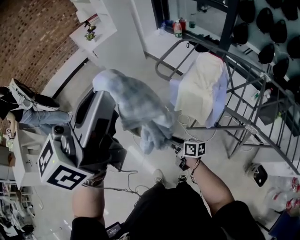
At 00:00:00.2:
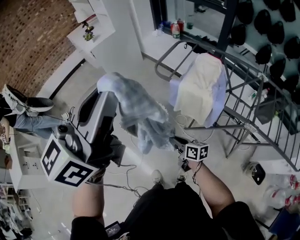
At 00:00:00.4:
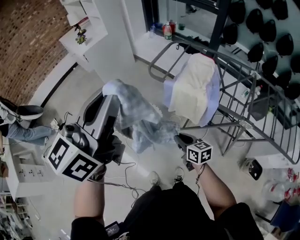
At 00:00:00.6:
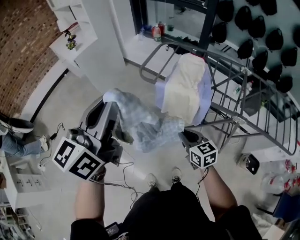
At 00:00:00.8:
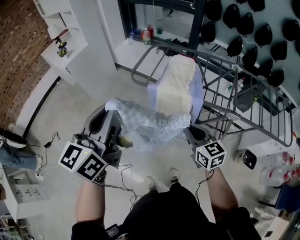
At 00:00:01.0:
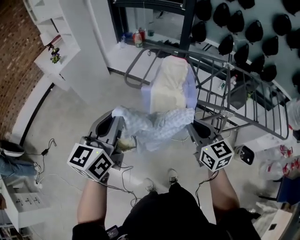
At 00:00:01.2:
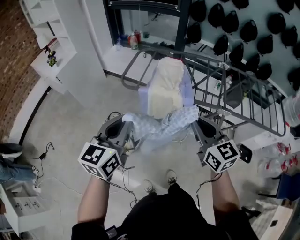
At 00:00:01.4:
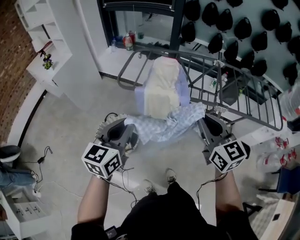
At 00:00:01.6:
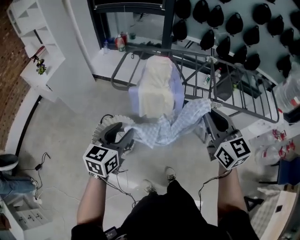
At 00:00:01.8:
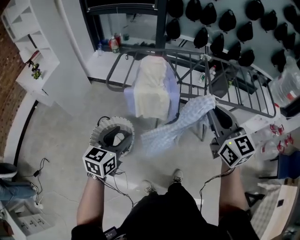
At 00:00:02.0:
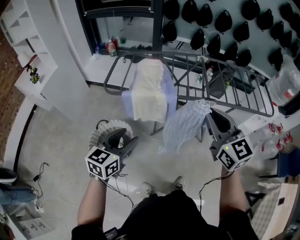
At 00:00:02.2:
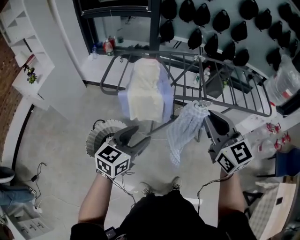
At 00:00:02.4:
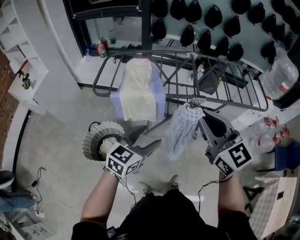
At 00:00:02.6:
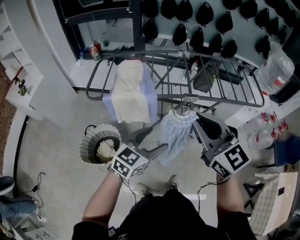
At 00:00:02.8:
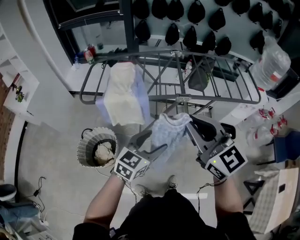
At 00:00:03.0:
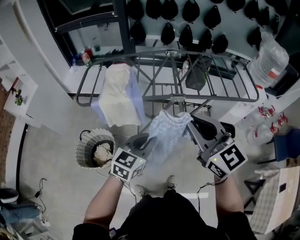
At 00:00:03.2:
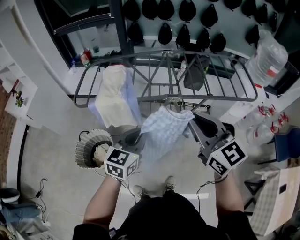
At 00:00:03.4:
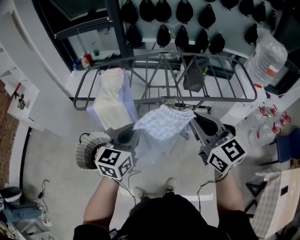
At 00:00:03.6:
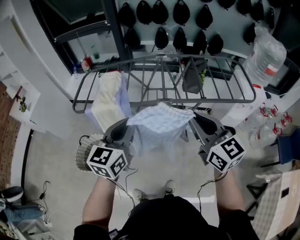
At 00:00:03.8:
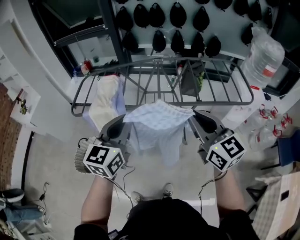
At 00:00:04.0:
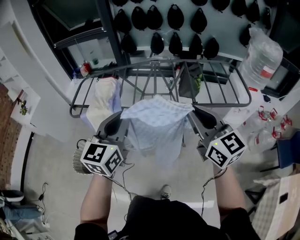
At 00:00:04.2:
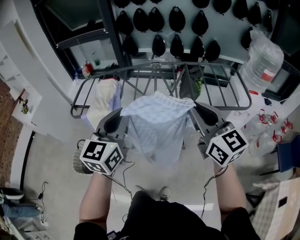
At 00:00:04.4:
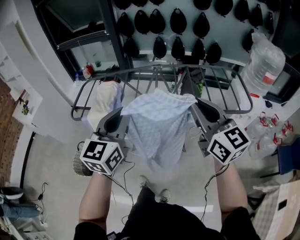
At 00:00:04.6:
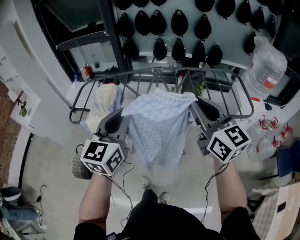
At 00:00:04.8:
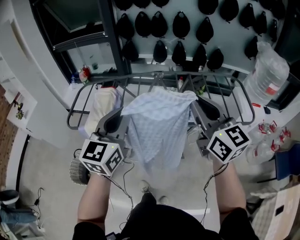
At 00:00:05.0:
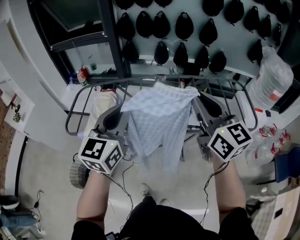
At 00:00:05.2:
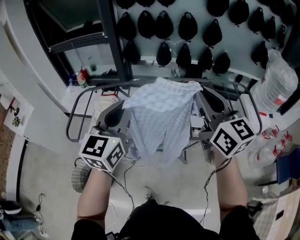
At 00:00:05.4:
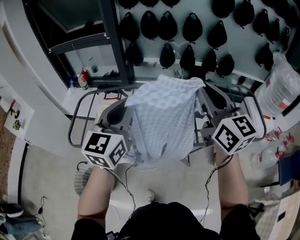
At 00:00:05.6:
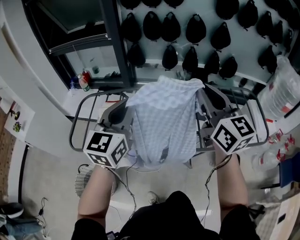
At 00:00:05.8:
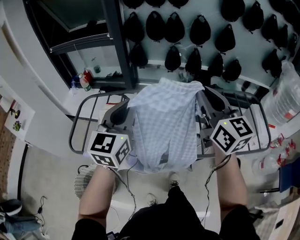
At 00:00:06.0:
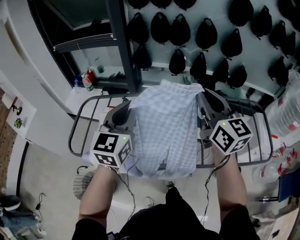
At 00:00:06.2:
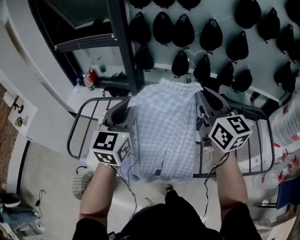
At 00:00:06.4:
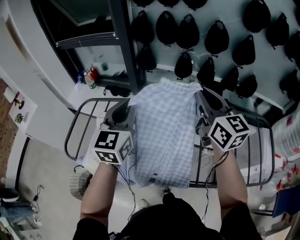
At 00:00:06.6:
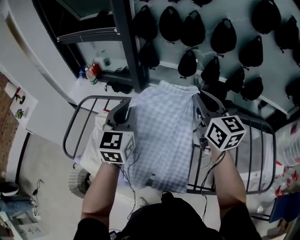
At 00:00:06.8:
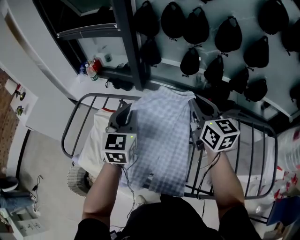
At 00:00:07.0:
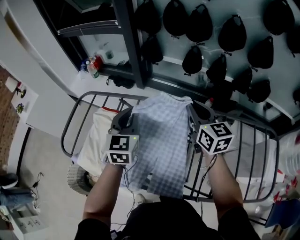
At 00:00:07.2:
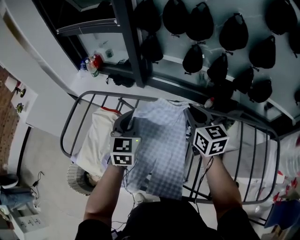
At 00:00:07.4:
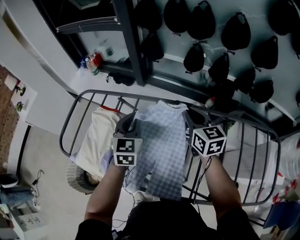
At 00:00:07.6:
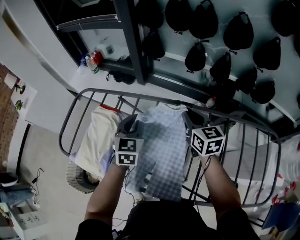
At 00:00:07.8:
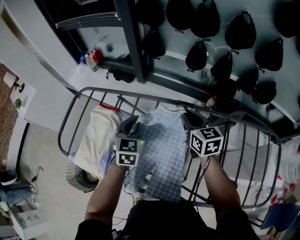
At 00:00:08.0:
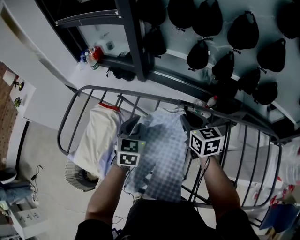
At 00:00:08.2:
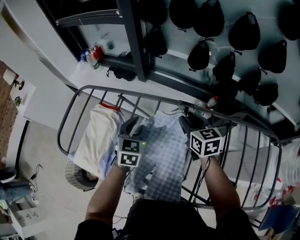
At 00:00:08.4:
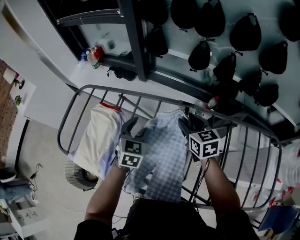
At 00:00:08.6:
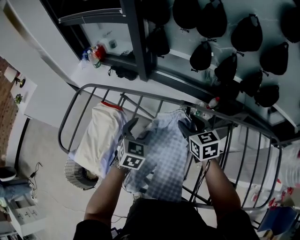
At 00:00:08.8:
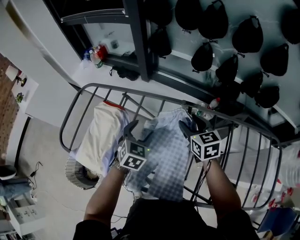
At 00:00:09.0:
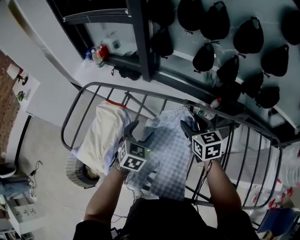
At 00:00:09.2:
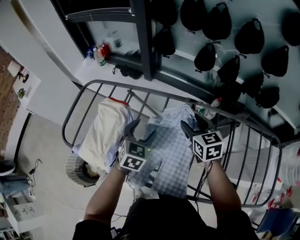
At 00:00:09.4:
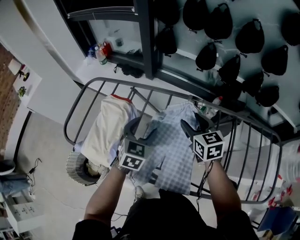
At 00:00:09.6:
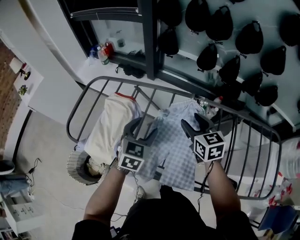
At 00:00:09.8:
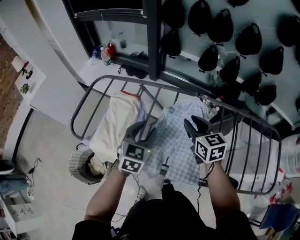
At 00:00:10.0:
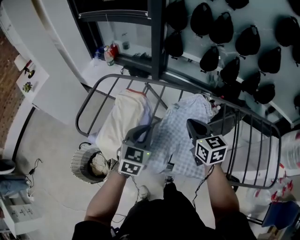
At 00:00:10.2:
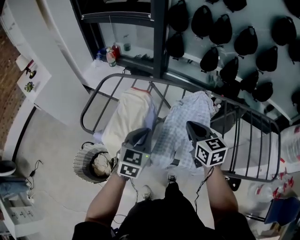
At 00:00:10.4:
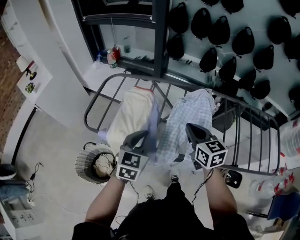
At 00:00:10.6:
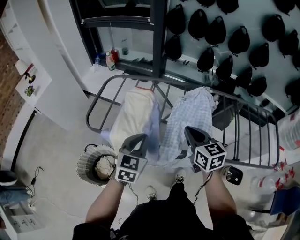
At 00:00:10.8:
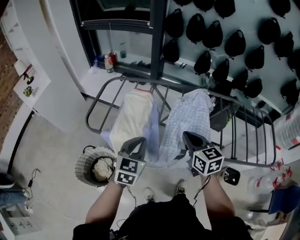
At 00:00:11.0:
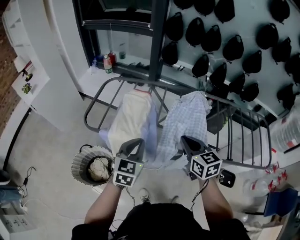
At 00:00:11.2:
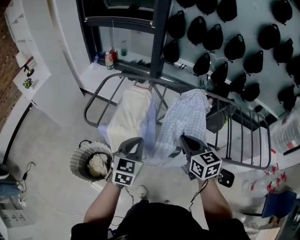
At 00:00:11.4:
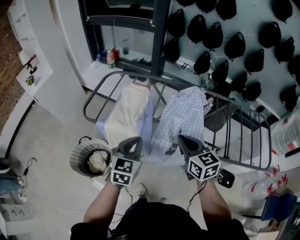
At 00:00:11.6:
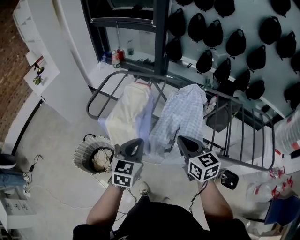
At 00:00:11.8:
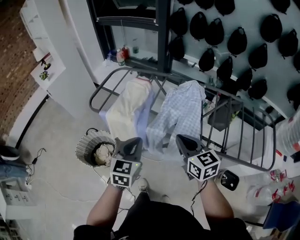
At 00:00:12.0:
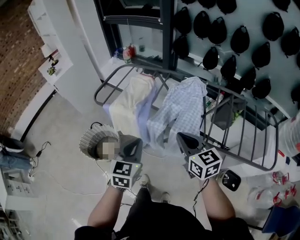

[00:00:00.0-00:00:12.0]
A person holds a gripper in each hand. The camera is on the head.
00:00:00.0 to 00:00:01.6: The left gripper is displaced downward by about 30 cm, points its fingers roughly 30 degrees further downward, and opens up. The right gripper goes roughly 35 cm upward, turns by some 70 degrees, and closes.
00:00:01.6 to 00:00:03.0: The right gripper moves to the right, about 15 cm. The left gripper heads to the right, covering approximately 30 cm, rotates some 30 degrees, and closes its fingers.
00:00:03.0 to 00:00:04.4: The left gripper goes about 20 cm upward and to the right, and changes its angle by roughly 30 degrees; the right gripper shifts some 20 cm to the right.
00:00:04.4 to 00:00:06.0: The two grippers go about 35 cm forward.
00:00:06.0 to 00:00:07.6: Both grippers travel together downward and forward, about 30 cm. The left gripper swivels approximately 30 degrees. The right gripper turns by roughly 30 degrees.
00:00:07.6 to 00:00:09.0: The right gripper moves roughly 5 cm, and opens. The left gripper heads downward, covering some 5 cm, and opens.
00:00:09.0 to 00:00:10.4: The right gripper heads backward and to the left, covering approximately 25 cm, and closes. The left gripper travels backward, to the left and upward by roughly 25 cm, and closes its fingers.
00:00:10.4 to 00:00:12.0: The two grippers go roughly 20 cm backward.

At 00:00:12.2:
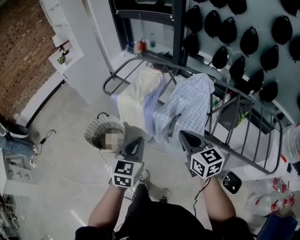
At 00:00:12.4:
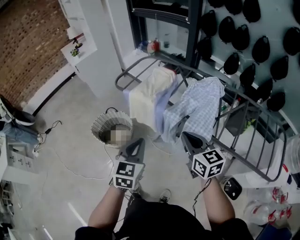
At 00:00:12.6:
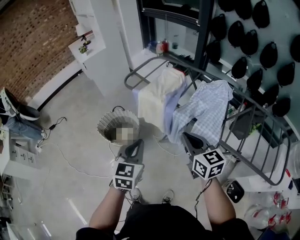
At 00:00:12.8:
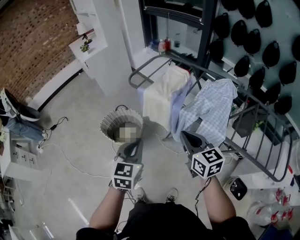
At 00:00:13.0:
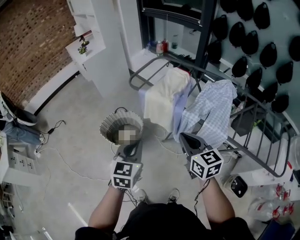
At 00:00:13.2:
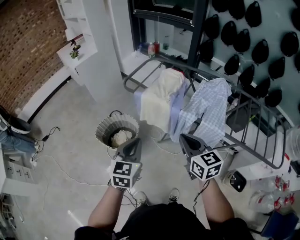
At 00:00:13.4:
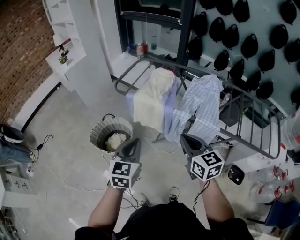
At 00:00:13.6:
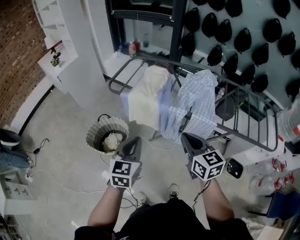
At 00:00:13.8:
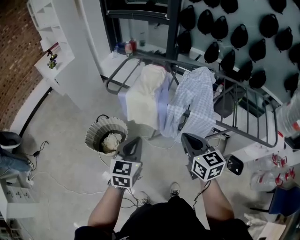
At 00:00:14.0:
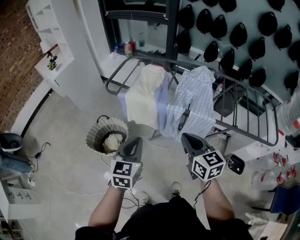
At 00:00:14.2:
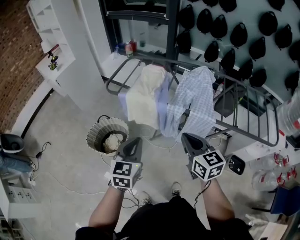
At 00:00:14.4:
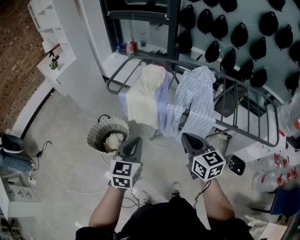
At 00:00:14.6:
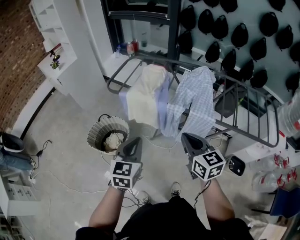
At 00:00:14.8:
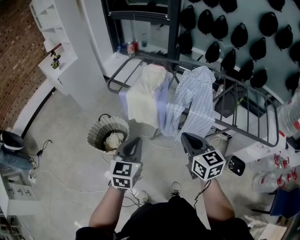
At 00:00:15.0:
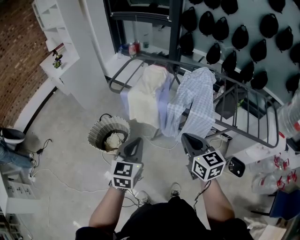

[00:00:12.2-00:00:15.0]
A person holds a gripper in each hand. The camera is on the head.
00:00:12.2 to 00:00:13.6: Both grippers travel together to the left, roughly 15 cm.
00:00:13.6 to 00:00:15.0: The grippers stay close to where they were, moving slightly.

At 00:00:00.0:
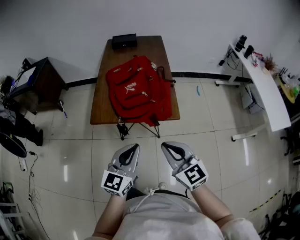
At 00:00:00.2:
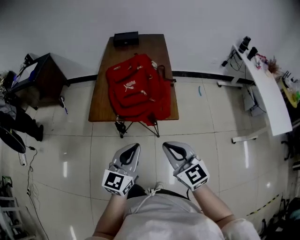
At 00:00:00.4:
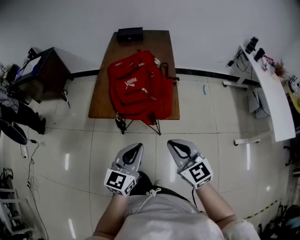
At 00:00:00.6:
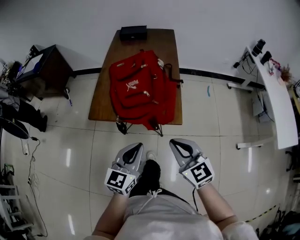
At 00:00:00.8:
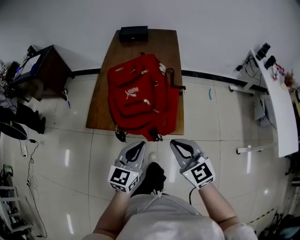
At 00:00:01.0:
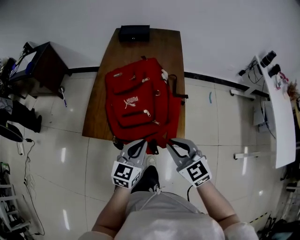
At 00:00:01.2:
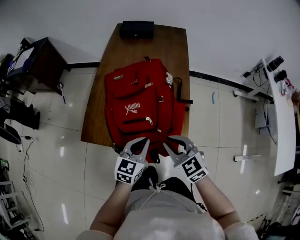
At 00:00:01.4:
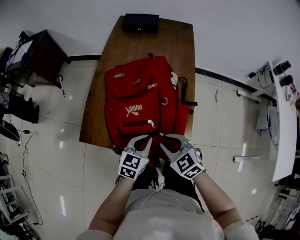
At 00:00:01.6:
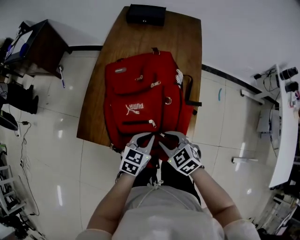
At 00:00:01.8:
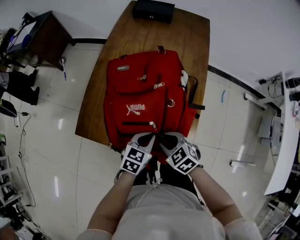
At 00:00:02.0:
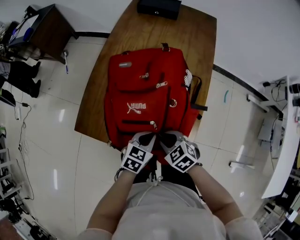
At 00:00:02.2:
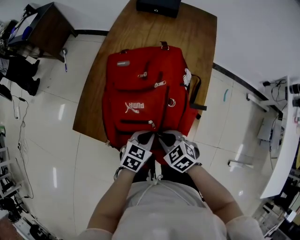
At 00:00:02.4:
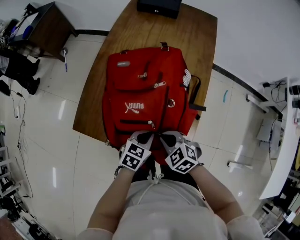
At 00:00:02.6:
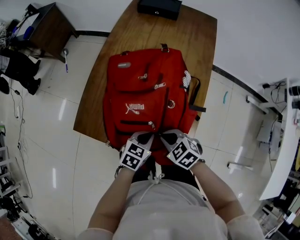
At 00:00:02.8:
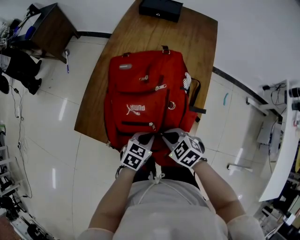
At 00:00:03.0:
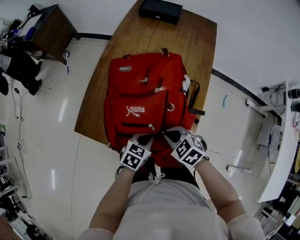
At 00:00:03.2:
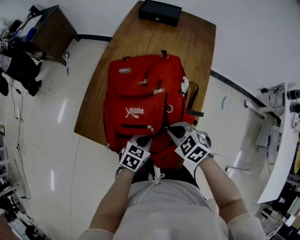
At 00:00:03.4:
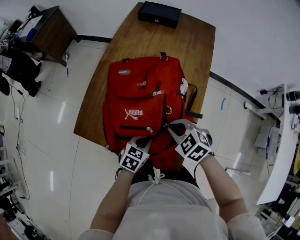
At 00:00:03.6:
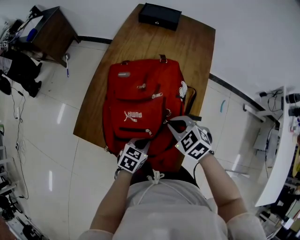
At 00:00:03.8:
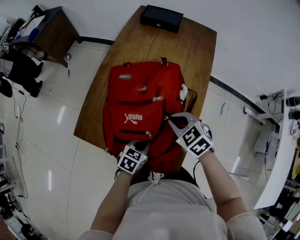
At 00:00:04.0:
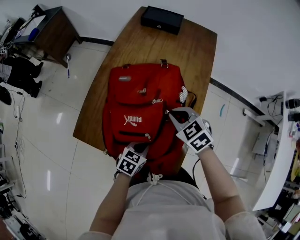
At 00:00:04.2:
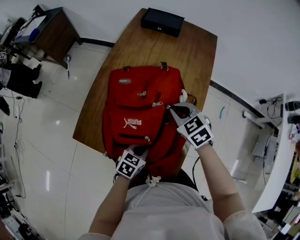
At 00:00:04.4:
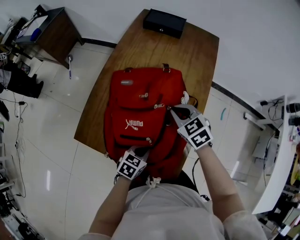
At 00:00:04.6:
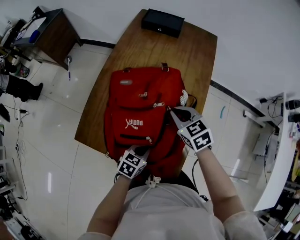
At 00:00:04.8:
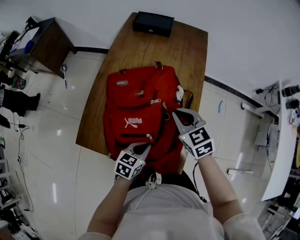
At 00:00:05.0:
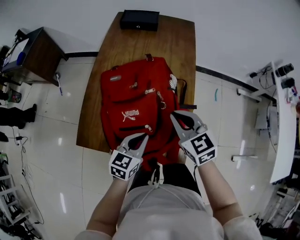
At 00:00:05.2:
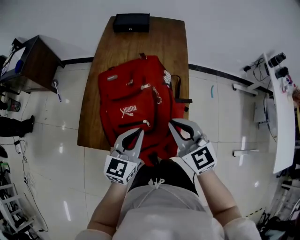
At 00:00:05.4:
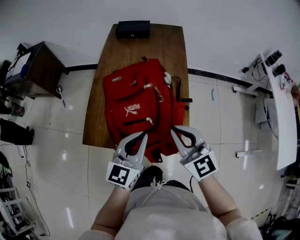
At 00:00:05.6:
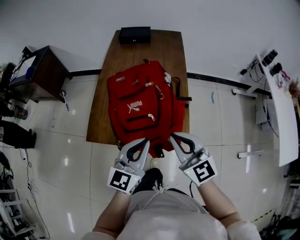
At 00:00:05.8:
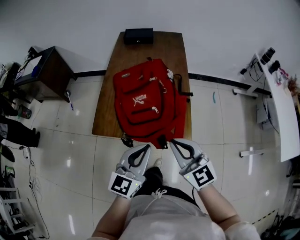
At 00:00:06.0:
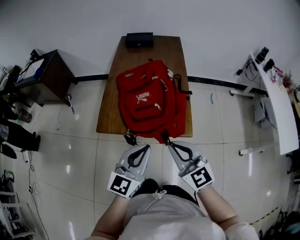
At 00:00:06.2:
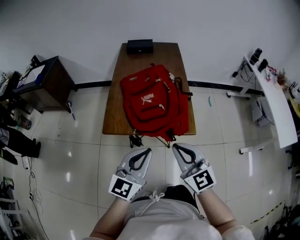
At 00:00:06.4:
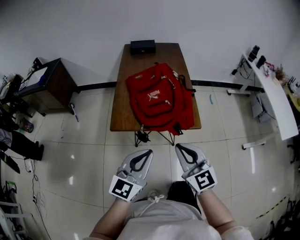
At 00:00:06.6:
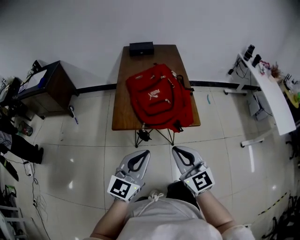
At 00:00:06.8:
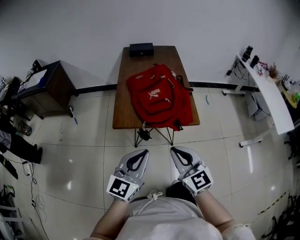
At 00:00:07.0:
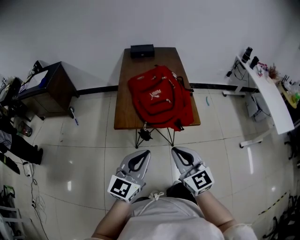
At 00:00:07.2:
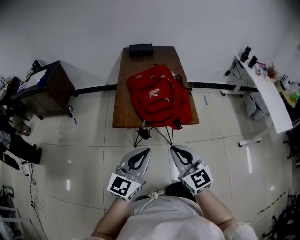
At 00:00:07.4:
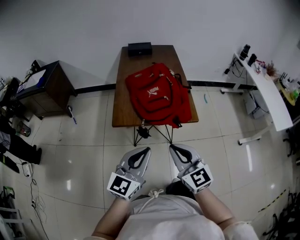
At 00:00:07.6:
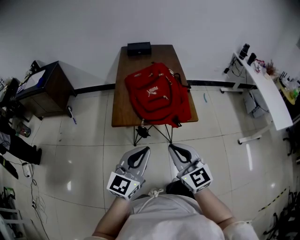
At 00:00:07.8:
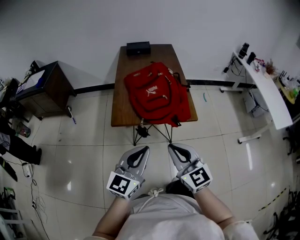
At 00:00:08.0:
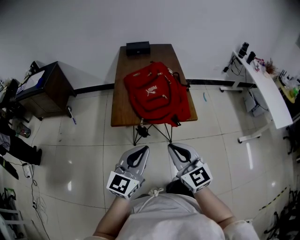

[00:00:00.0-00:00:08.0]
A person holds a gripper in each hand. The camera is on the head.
00:00:00.0 to 00:00:01.6: The two grippers go roughly 40 cm forward and downward. The right gripper tilts its fingers some 30 degrees downward, and opens; the left gripper swivels approximately 30 degrees.
00:00:01.6 to 00:00:03.2: The left gripper ends up some 5 cm from where it was. The right gripper travels forward by about 5 cm, and closes its fingers.
00:00:03.2 to 00:00:04.8: The right gripper is displaced forward and upward by roughly 15 cm, and rotates about 30 degrees.
00:00:04.8 to 00:00:06.4: The right gripper travels backward by roughly 40 cm, and turns by some 30 degrees. Meanwhile the left gripper goes some 40 cm backward, upward and to the left, and angles its fingers upward, by roughly 40 degrees.
00:00:06.4 to 00:00:08.0: The grippers both shift backward by some 5 cm.
